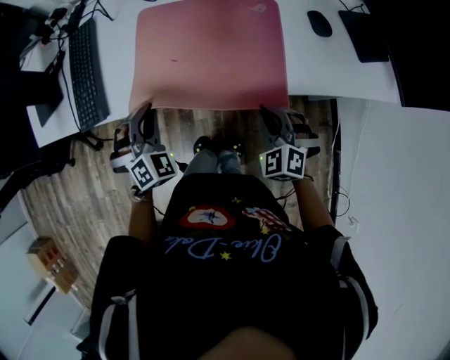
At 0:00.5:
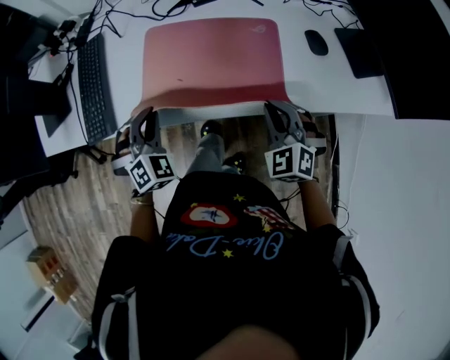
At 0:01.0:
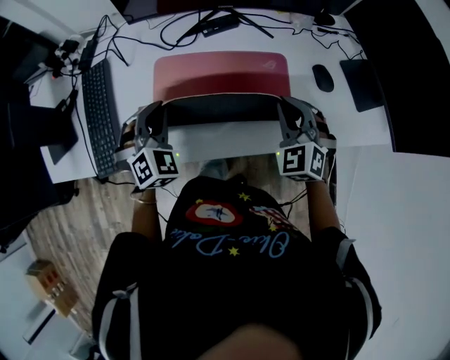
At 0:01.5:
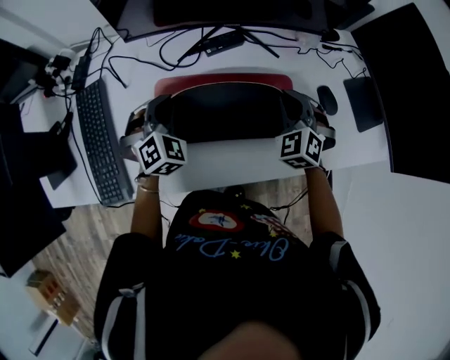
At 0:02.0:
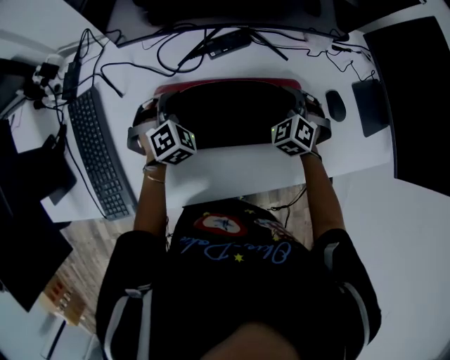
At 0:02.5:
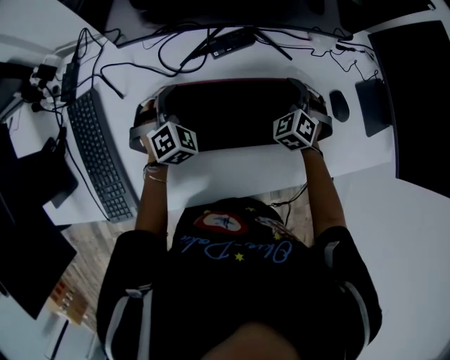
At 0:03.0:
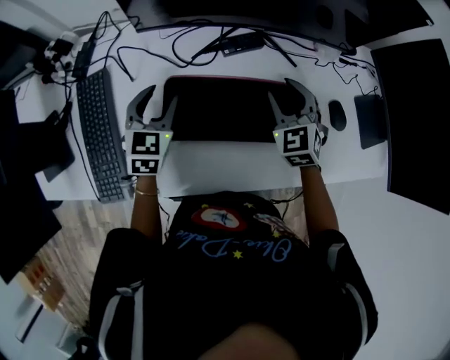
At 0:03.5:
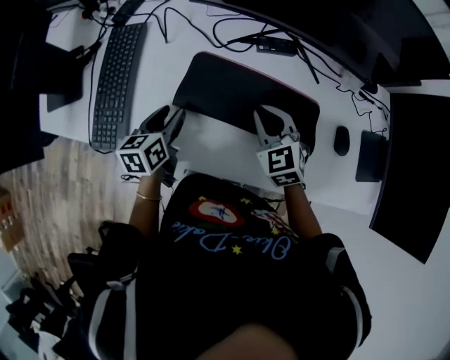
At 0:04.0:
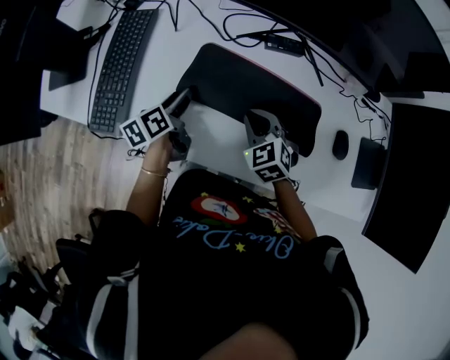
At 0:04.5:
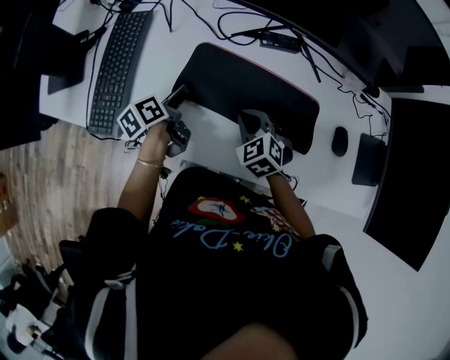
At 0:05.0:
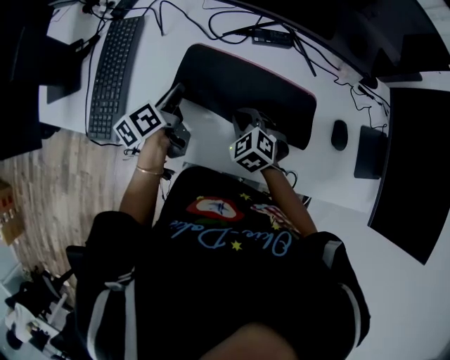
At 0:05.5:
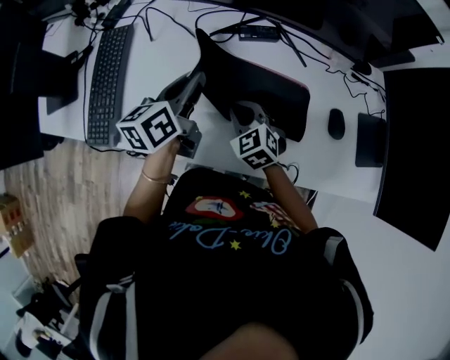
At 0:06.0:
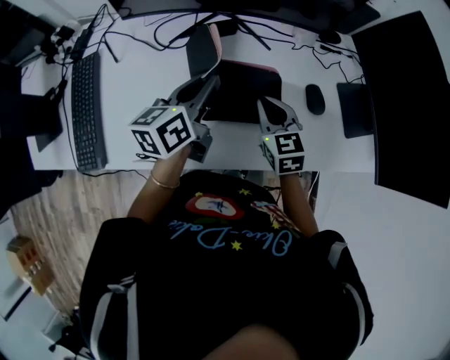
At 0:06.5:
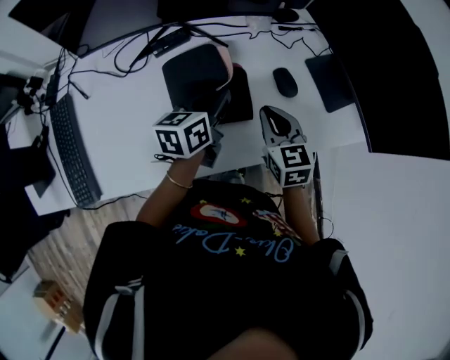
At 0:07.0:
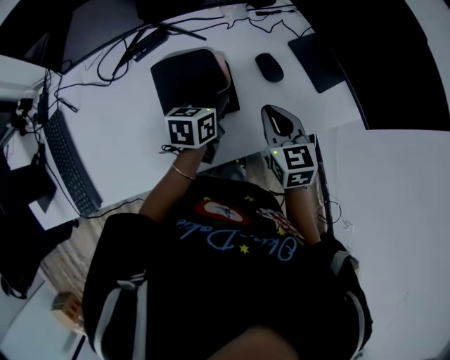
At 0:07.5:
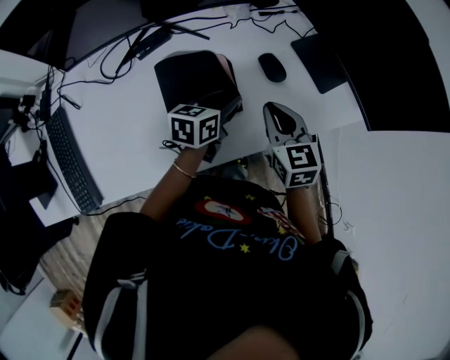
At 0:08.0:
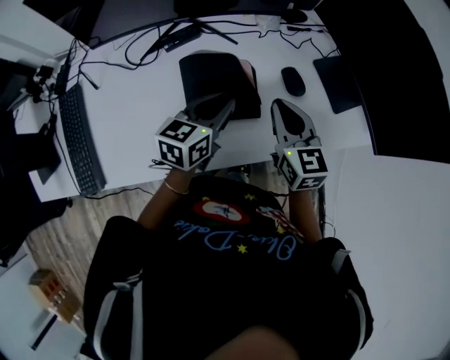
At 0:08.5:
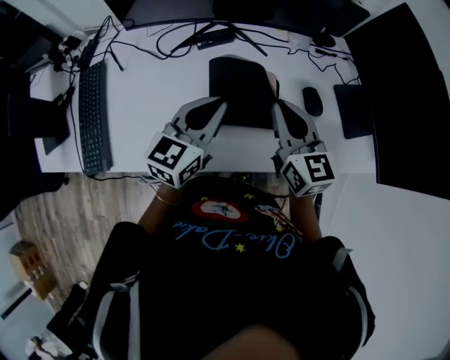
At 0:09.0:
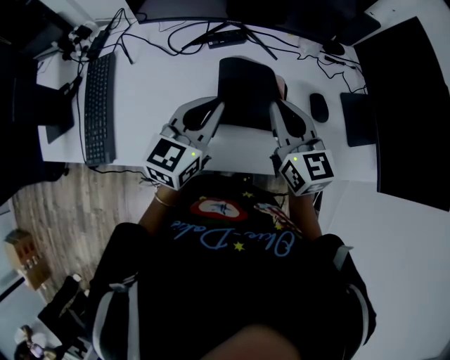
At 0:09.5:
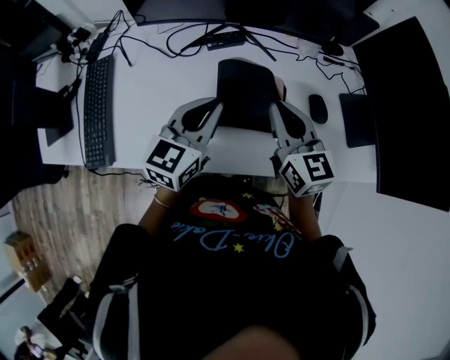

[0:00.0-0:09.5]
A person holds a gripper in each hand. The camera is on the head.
0:00.0 to 0:02.0: The two grippers go roughly 30 cm forward.
0:02.0 to 0:04.0: The left gripper goes upward and returns, some 10 cm each way, rotates around the line of its fingers by roughly 110 degrees, counterclockwise from behind, and opens its fingers, while the right gripper moves some 10 cm upward and comes back, swivels roughly 30 degrees, and opens and closes again.
0:04.0 to 0:05.5: The left gripper goes approximately 15 cm upward and to the right, rotates approximately 30 degrees, and closes up.
0:05.5 to 0:07.5: The left gripper changes place by approximately 30 cm, rotates roughly 50 degrees, and opens up; the right gripper changes place by roughly 30 cm, and swivels approximately 50 degrees.
0:07.5 to 0:09.5: The right gripper moves some 15 cm, and rotates about 30 degrees. The left gripper shifts by some 20 cm, turns by approximately 40 degrees, and closes its fingers.

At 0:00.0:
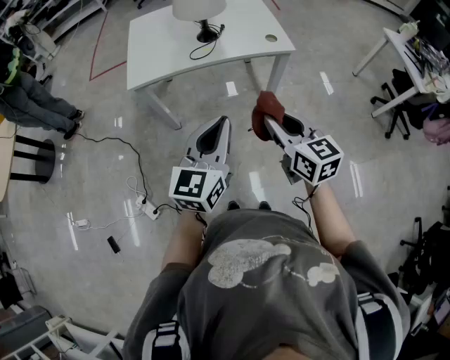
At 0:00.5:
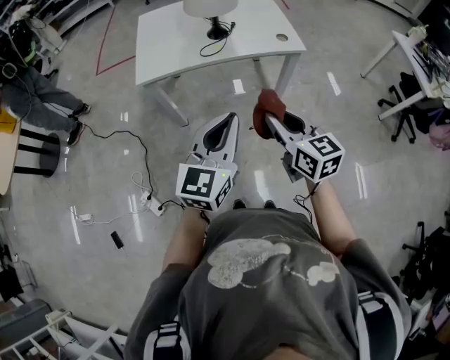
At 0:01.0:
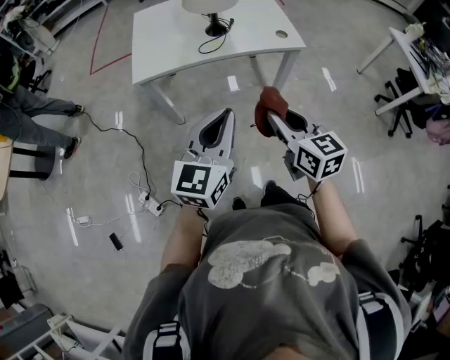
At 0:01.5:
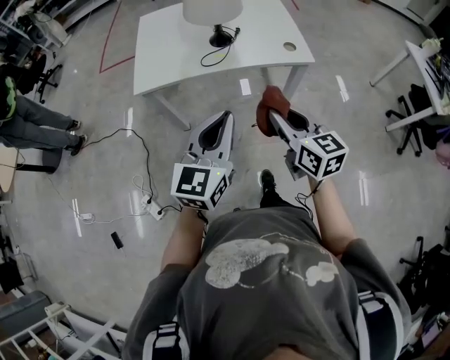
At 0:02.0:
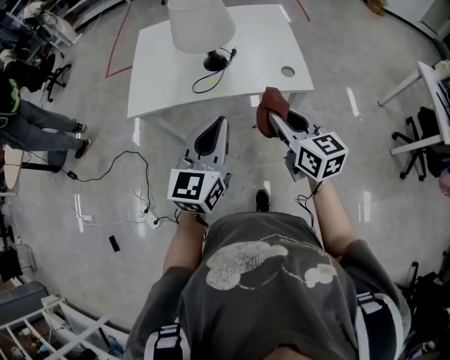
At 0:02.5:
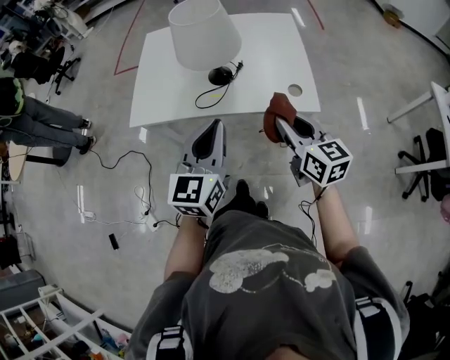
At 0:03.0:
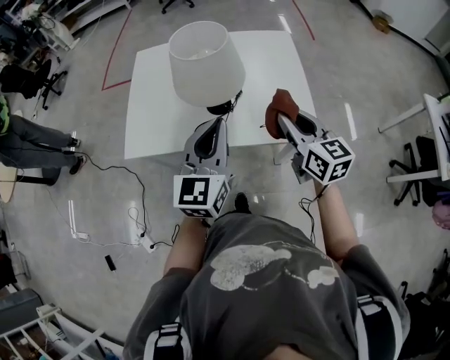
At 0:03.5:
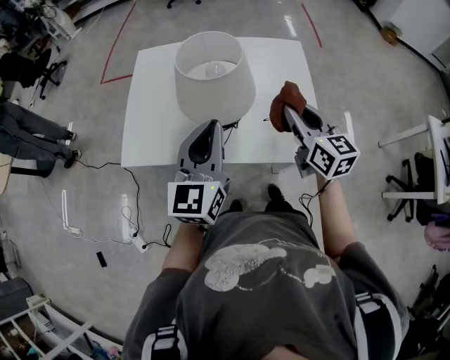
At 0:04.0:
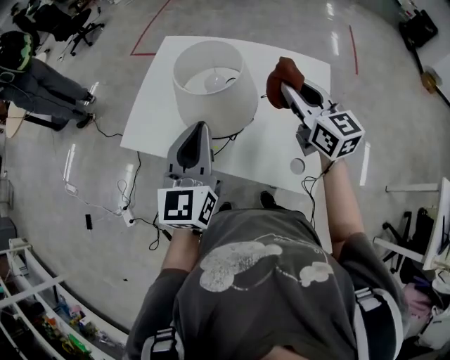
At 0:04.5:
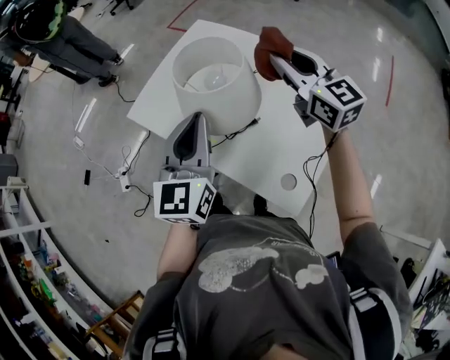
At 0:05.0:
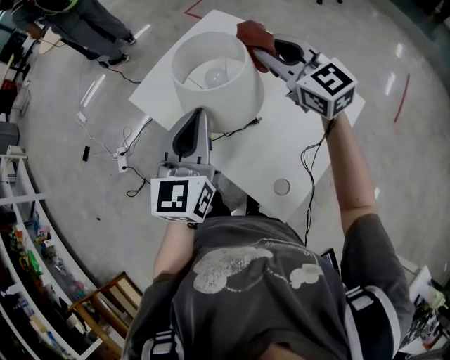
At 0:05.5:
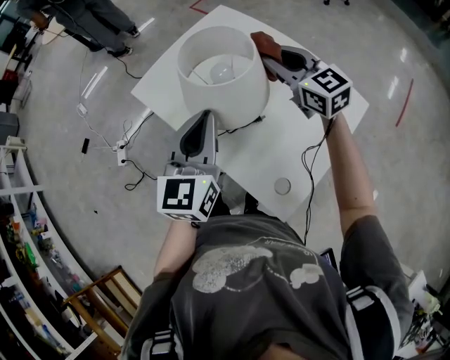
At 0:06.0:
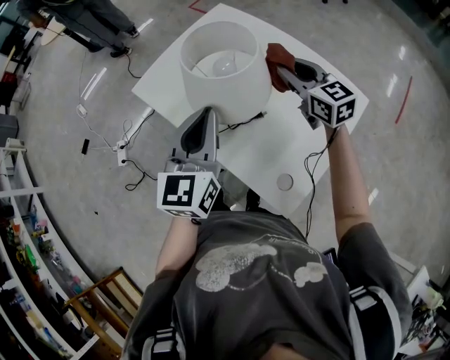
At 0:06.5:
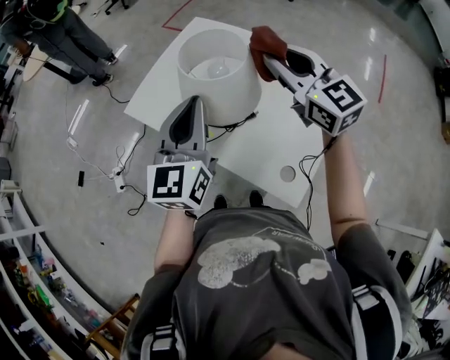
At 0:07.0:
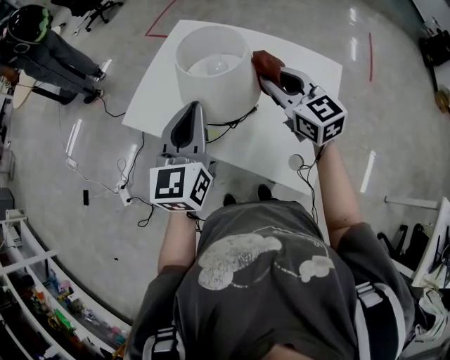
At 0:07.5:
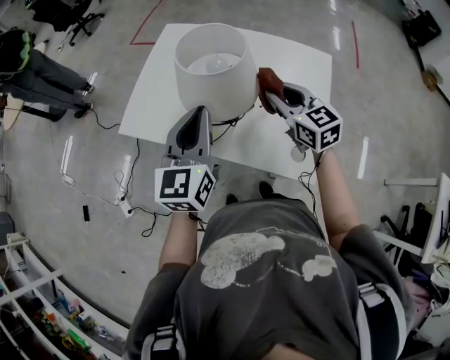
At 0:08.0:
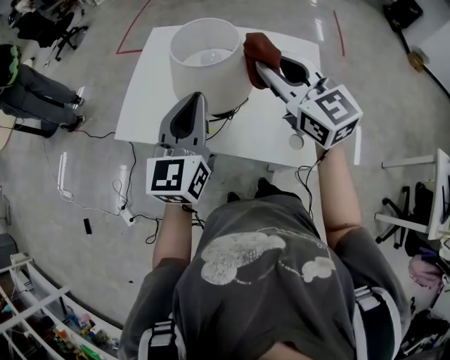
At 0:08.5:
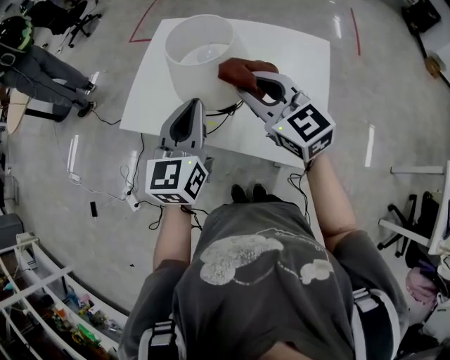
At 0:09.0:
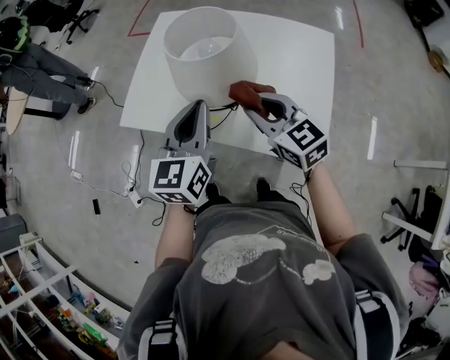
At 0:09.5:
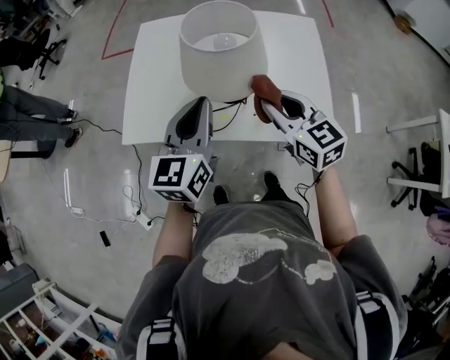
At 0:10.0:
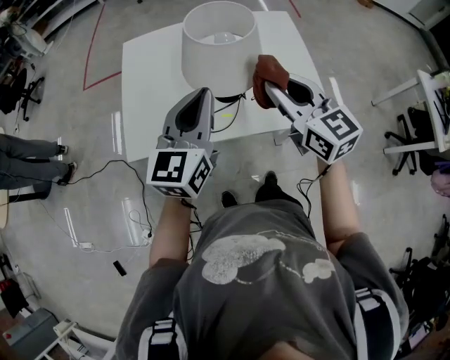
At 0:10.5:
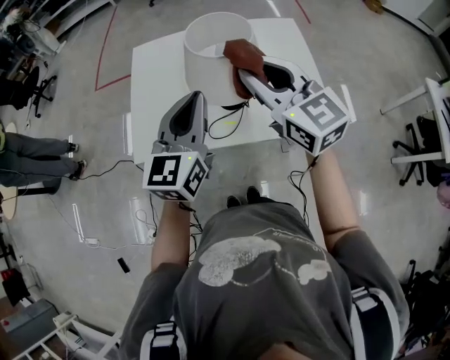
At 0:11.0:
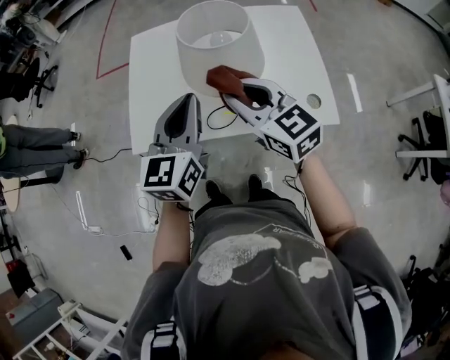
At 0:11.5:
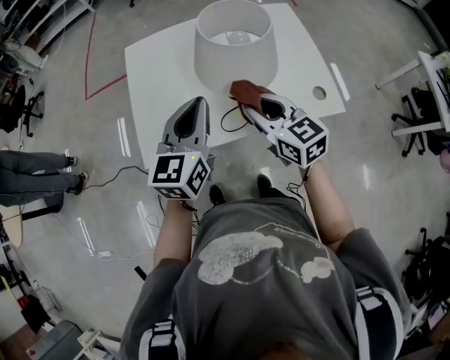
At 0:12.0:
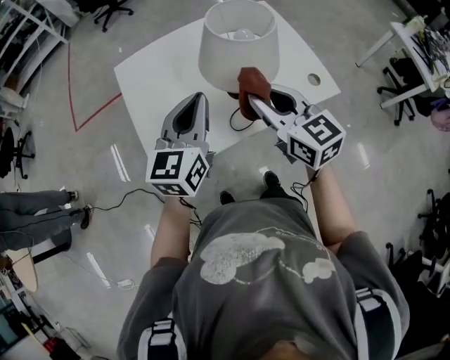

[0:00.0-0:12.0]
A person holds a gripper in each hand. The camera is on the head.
0:00.0 to 0:02.0: Both grippers move forward, roughly 20 cm.
0:02.0 to 0:04.0: Both grippers move forward, roughly 35 cm. The left gripper changes its angle by approximately 30 degrees. The right gripper rotates some 20 degrees.
0:04.0 to 0:06.0: The left gripper changes its angle by roughly 20 degrees, while the right gripper ends up roughly 15 cm from where it was, and changes its angle by roughly 30 degrees.
0:06.0 to 0:08.0: The left gripper ends up some 5 cm from where it was, and turns by roughly 30 degrees. The right gripper swings up and down, about 15 cm each way, with 2 reversals, and swivels roughly 30 degrees.
0:08.0 to 0:10.0: The left gripper ends up about 5 cm from where it was, and swivels roughly 30 degrees. The right gripper moves about 10 cm, and turns by approximately 20 degrees.
0:10.0 to 0:12.0: The right gripper swings up and down, roughly 15 cm each way, with 2 reversals. Meanwhile the left gripper moves to the left, approximately 10 cm.

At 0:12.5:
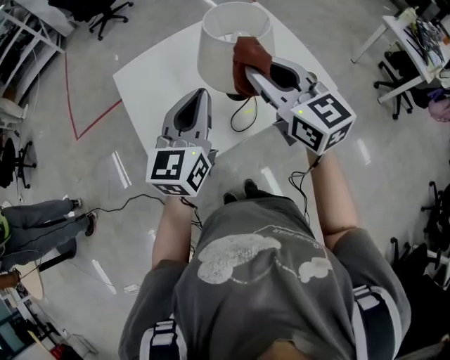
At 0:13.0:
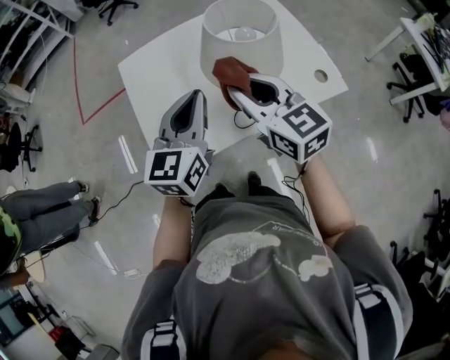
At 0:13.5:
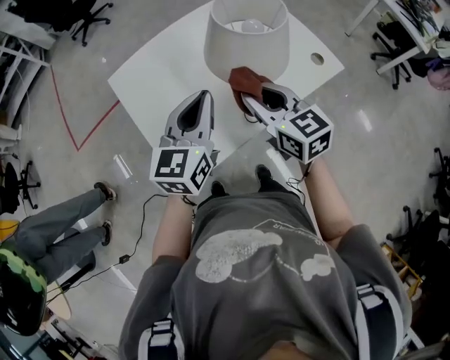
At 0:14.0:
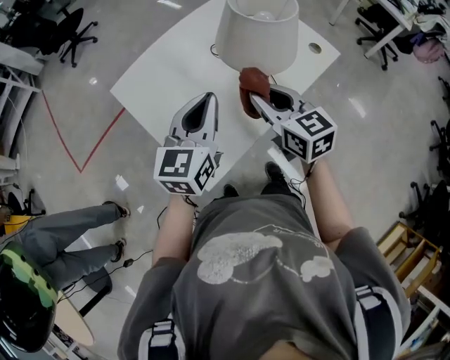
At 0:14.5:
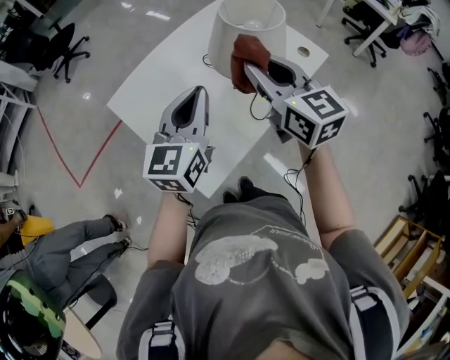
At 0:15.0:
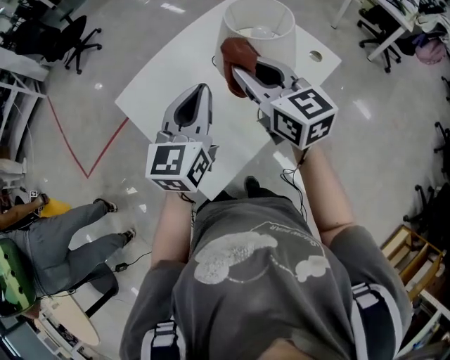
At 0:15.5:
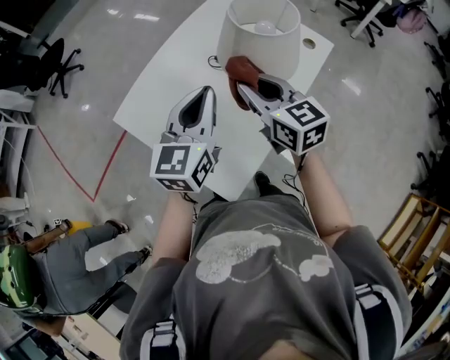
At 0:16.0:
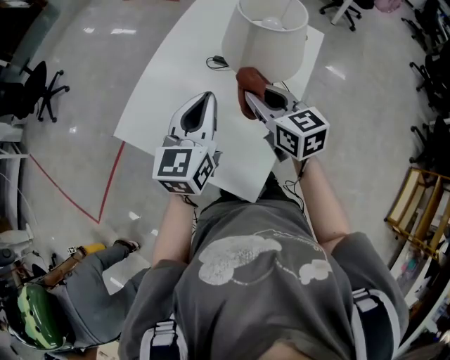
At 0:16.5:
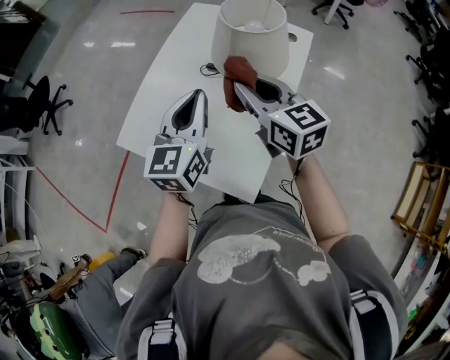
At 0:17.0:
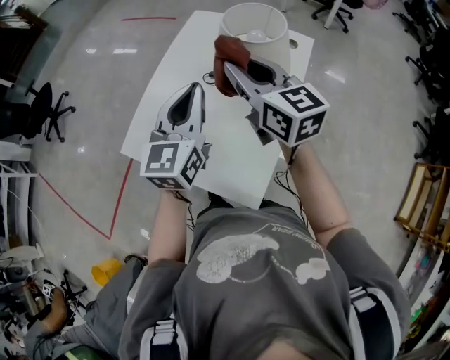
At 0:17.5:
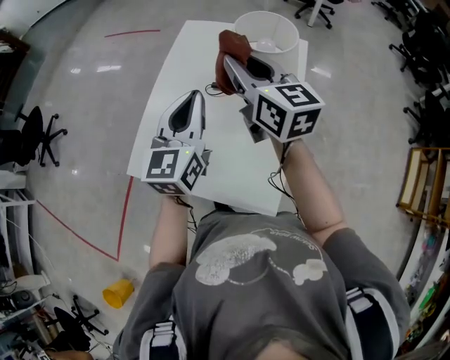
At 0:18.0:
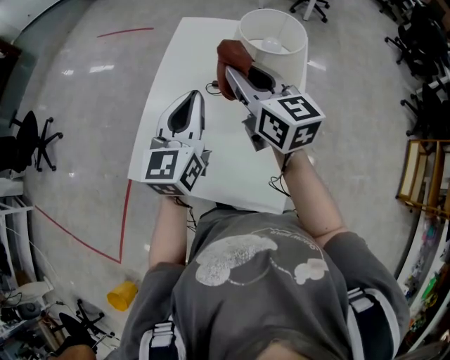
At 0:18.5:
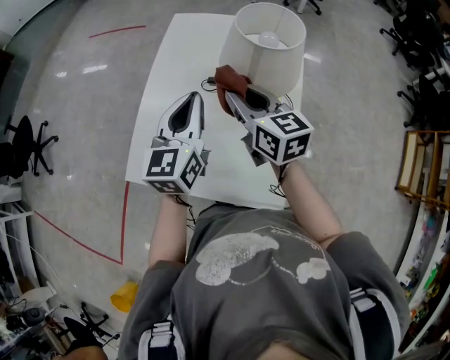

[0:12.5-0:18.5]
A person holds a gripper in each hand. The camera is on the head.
0:12.5 to 0:14.5: The left gripper changes place by some 10 cm; the right gripper reaches about 15 cm downward, then returns, and turns by roughly 20 degrees.
0:14.5 to 0:16.5: The left gripper moves forward and to the left, about 5 cm; the right gripper goes some 5 cm to the left.
0:16.5 to 0:18.5: The left gripper is displaced forward and to the left by roughly 10 cm; the right gripper goes approximately 10 cm to the left and forward, and reaches some 5 cm upward, then returns.
